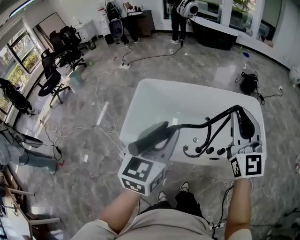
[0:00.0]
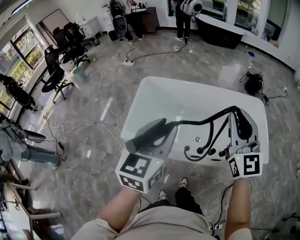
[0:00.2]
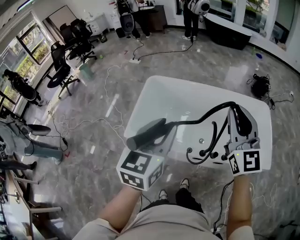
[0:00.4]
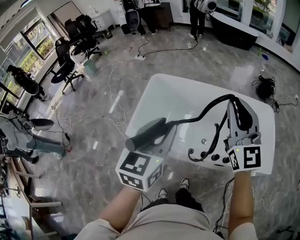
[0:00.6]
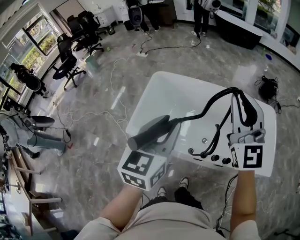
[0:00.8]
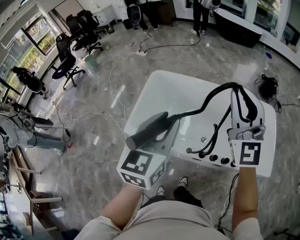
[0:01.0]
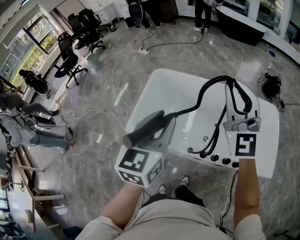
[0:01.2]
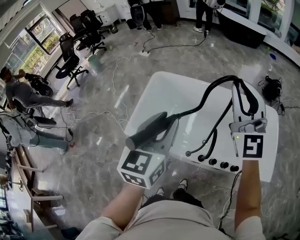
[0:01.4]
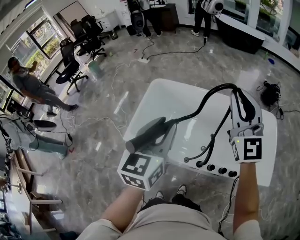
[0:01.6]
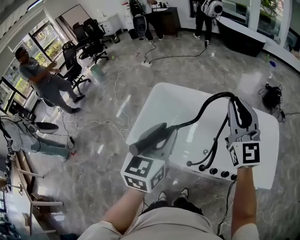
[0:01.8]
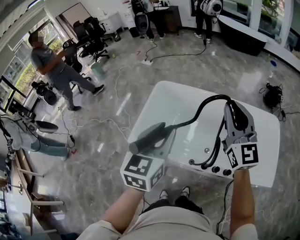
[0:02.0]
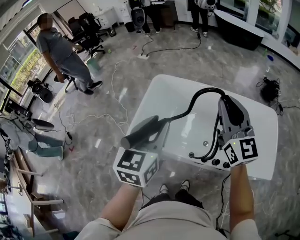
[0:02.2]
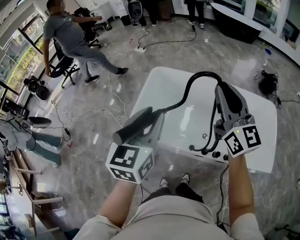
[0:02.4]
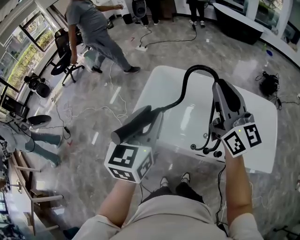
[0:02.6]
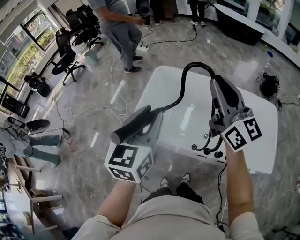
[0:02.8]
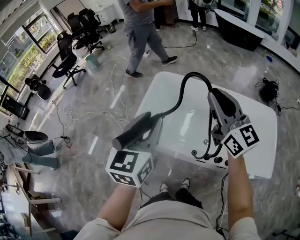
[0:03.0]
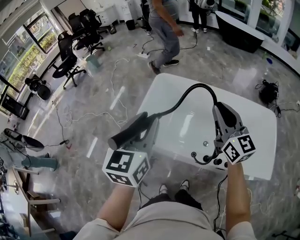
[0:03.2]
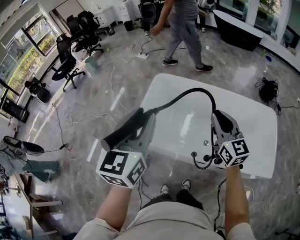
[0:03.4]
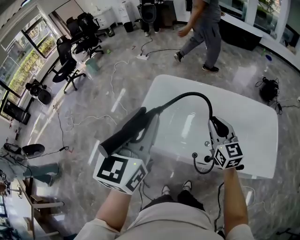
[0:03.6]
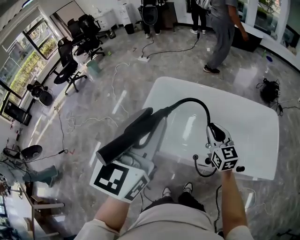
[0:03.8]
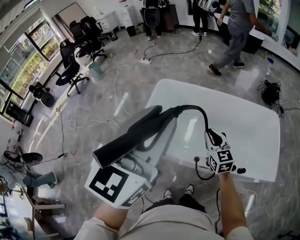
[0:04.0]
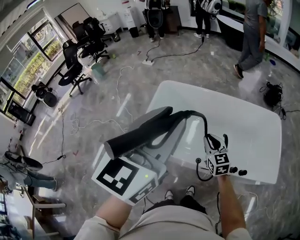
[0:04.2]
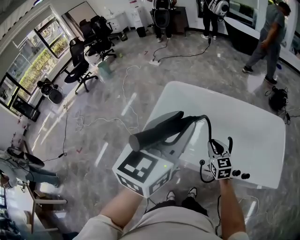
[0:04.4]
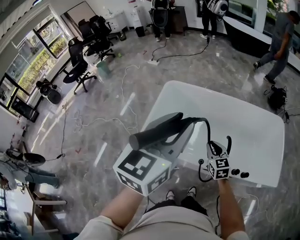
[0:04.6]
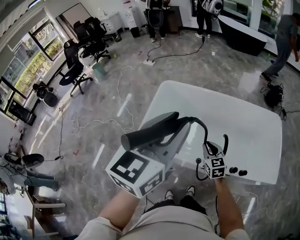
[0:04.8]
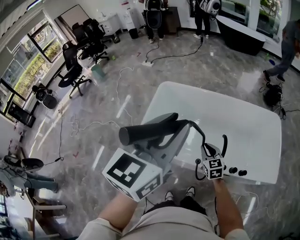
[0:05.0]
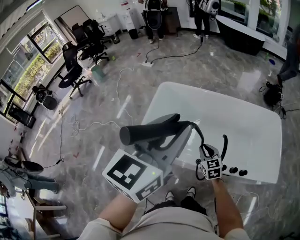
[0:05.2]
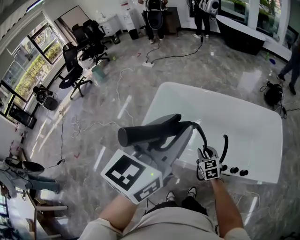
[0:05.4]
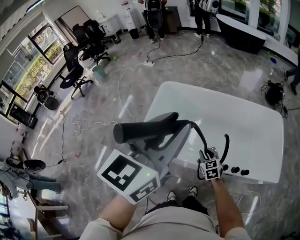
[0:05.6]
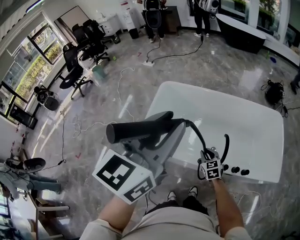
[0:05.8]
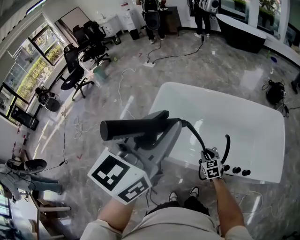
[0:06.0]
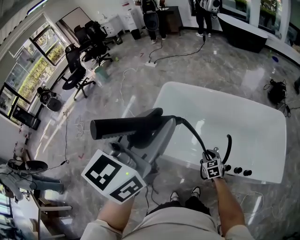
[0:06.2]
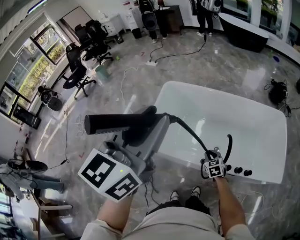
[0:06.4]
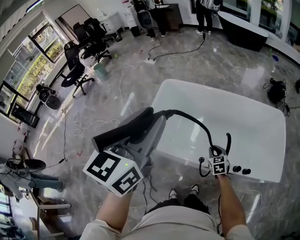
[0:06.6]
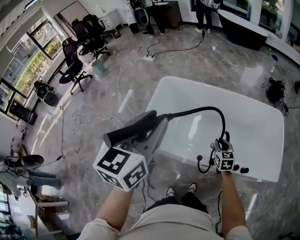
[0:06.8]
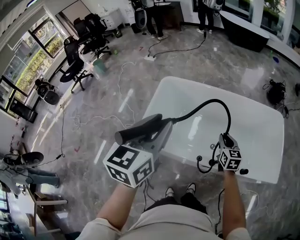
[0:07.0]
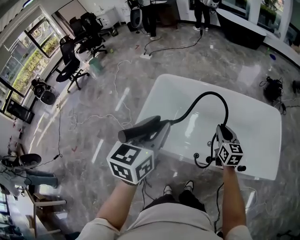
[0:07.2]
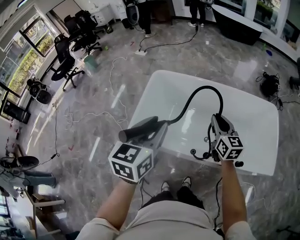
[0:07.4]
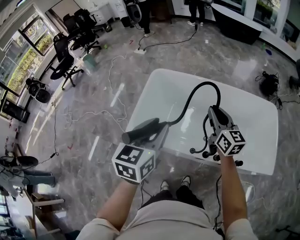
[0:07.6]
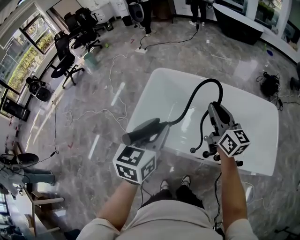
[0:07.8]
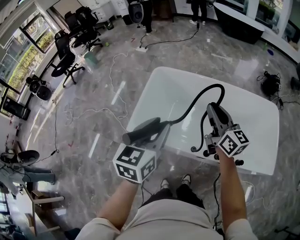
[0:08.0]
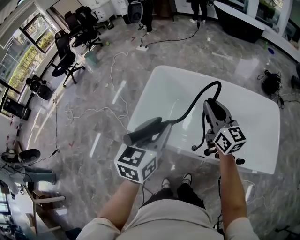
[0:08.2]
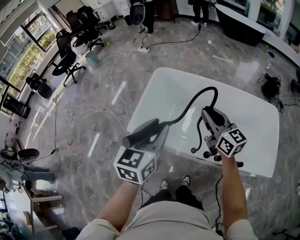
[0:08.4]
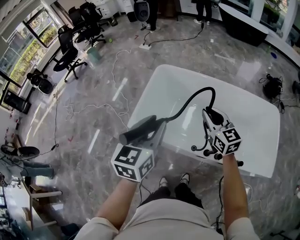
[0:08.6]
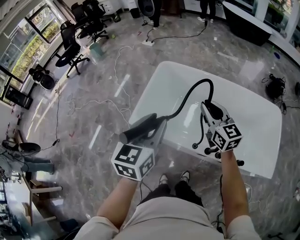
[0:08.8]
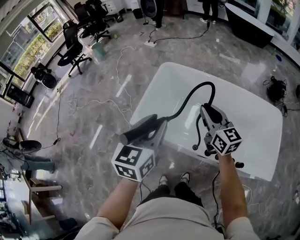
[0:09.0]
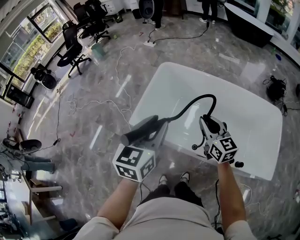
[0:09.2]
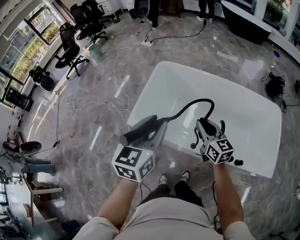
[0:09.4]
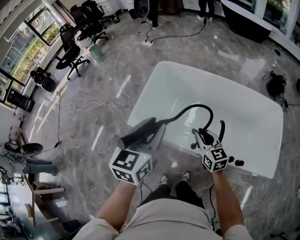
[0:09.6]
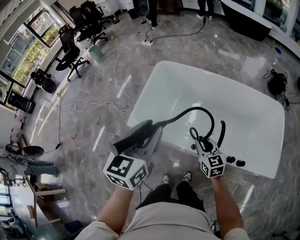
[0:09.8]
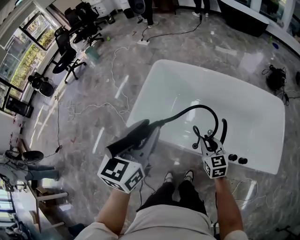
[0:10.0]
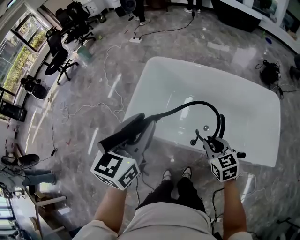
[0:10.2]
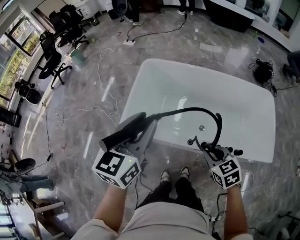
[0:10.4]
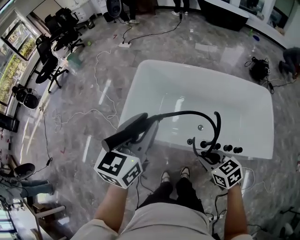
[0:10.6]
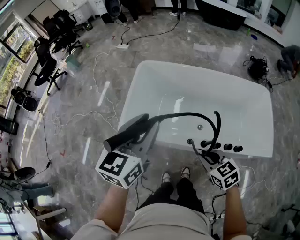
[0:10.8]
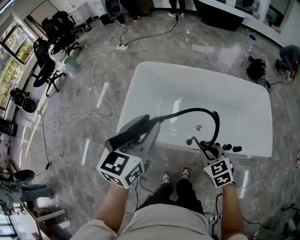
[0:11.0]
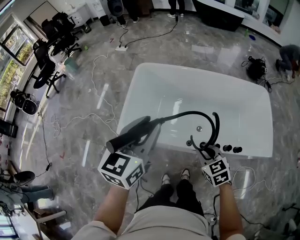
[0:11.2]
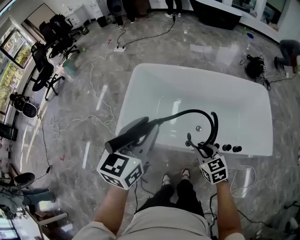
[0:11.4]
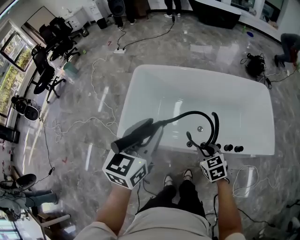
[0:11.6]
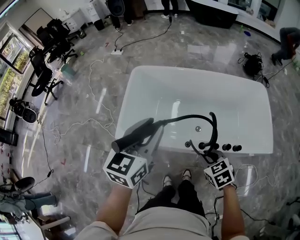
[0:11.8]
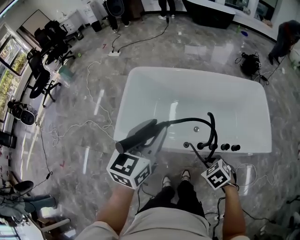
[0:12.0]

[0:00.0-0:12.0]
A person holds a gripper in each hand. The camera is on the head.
0:00.0 to 0:01.6: The left gripper goes approximately 10 cm forward. Meanwhile the right gripper heads forward, covering about 20 cm.
0:01.6 to 0:03.0: Both grippers move to the left, approximately 15 cm. The right gripper swivels approximately 30 degrees.
0:03.0 to 0:04.4: The left gripper goes approximately 10 cm upward and to the right. The right gripper travels downward by approximately 30 cm, and tilts its fingers roughly 30 degrees downward.
0:04.4 to 0:06.0: The right gripper goes some 15 cm downward.
0:06.0 to 0:07.6: The left gripper heads downward, covering approximately 15 cm. The right gripper goes about 25 cm upward, and angles its fingers upward, by approximately 30 degrees.
0:07.6 to 0:09.0: The right gripper moves to the left, approximately 5 cm.
0:09.0 to 0:10.4: The right gripper goes roughly 20 cm backward and downward, and tips its fingers downward by approximately 40 degrees.
0:10.4 to 0:12.0: The left gripper travels to the right by some 5 cm, while the right gripper heads downward, covering roughly 5 cm, and turns by about 20 degrees.

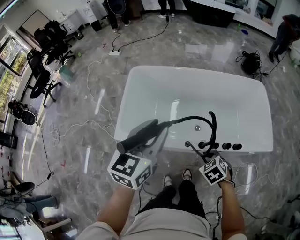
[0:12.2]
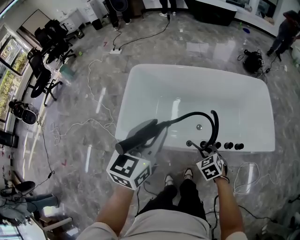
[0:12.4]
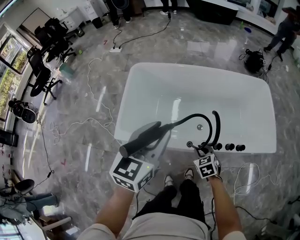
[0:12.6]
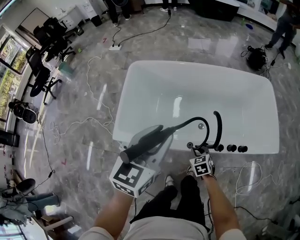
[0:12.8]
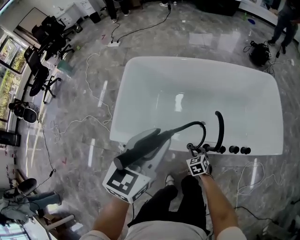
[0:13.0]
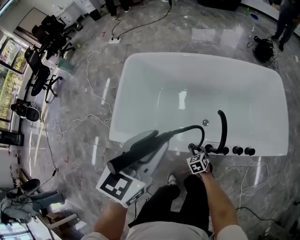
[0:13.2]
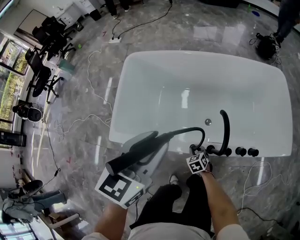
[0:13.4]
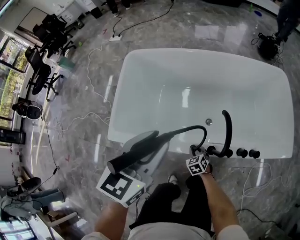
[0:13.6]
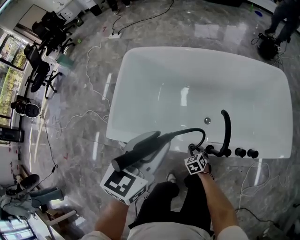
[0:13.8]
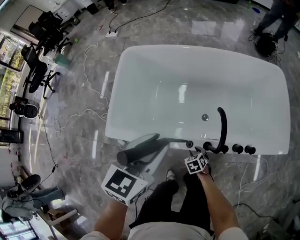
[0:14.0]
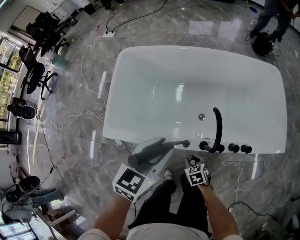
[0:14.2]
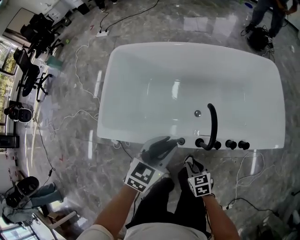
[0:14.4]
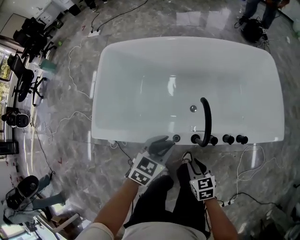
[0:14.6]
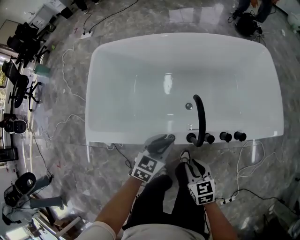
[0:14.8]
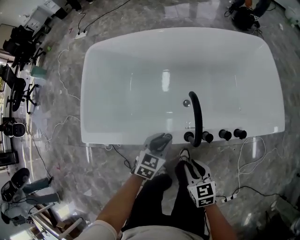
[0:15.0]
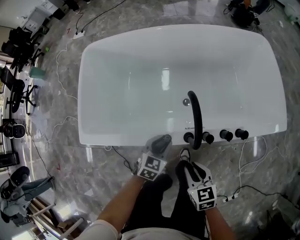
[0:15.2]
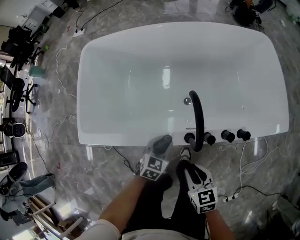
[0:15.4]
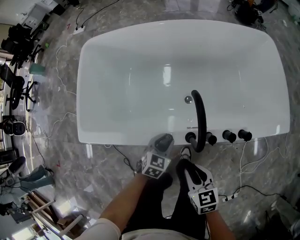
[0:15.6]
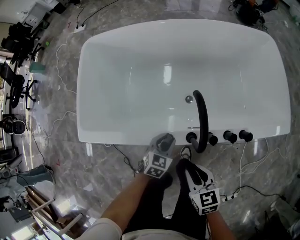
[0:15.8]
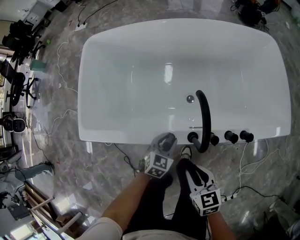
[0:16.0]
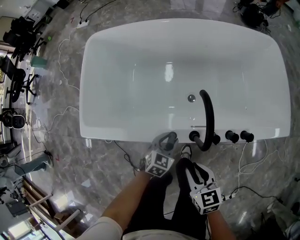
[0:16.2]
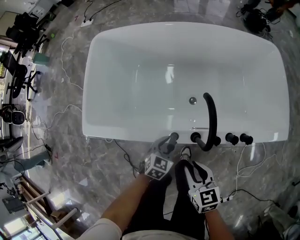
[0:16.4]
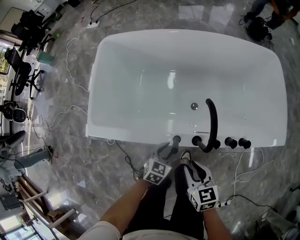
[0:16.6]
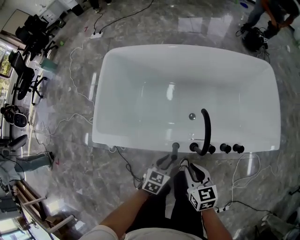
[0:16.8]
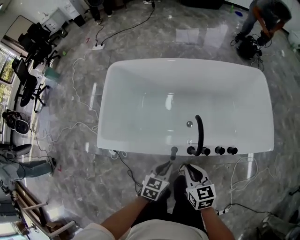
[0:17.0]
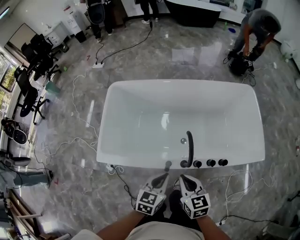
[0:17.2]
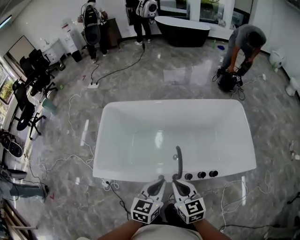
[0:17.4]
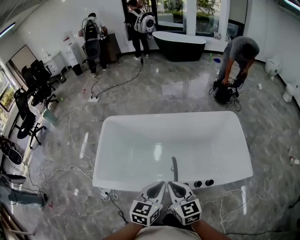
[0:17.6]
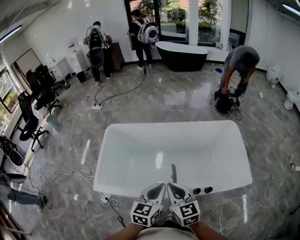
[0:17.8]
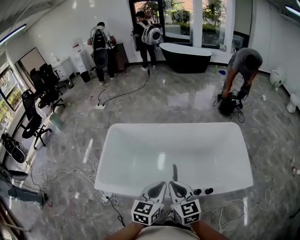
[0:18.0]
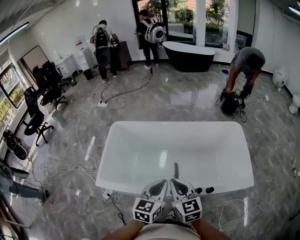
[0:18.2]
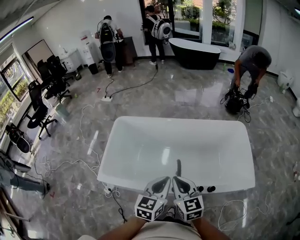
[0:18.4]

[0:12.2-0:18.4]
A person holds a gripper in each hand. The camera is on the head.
0:12.2 to 0:13.8: The left gripper heads downward, covering some 15 cm. Meanwhile the right gripper travels downward by approximately 30 cm.
0:13.8 to 0:15.4: The left gripper travels downward by approximately 35 cm, and swivels roughly 30 degrees. The right gripper is displaced upward, backward and to the right by roughly 20 cm, and changes its angle by some 30 degrees.
0:15.4 to 0:16.8: The grippers both shift upward by about 5 cm.
0:16.8 to 0:18.4: Both grippers travel together upward, some 30 cm. The left gripper changes its angle by about 30 degrees, and closes its fingers. Meanwhile the right gripper turns by approximately 30 degrees.

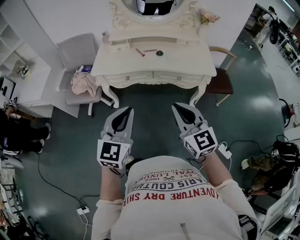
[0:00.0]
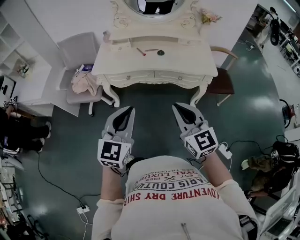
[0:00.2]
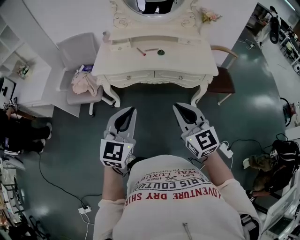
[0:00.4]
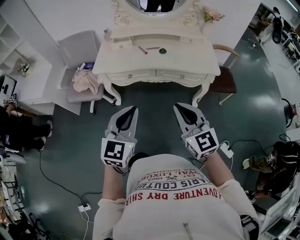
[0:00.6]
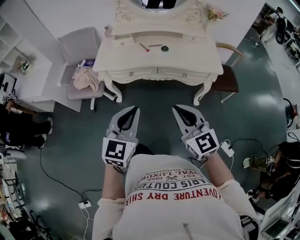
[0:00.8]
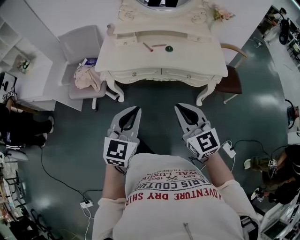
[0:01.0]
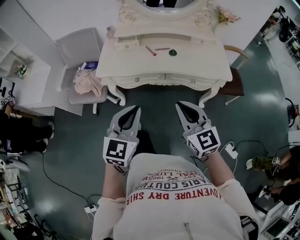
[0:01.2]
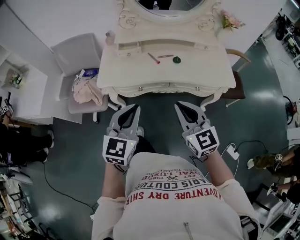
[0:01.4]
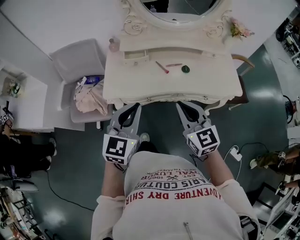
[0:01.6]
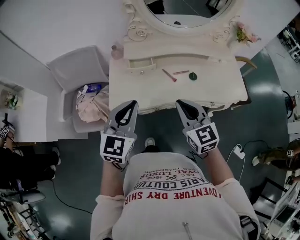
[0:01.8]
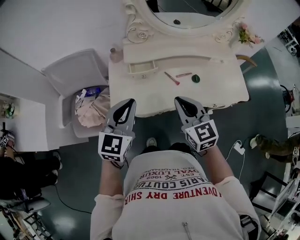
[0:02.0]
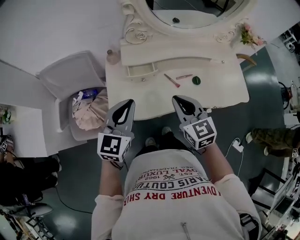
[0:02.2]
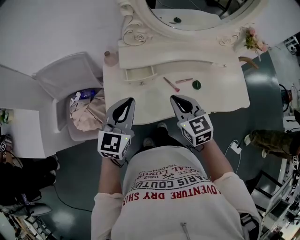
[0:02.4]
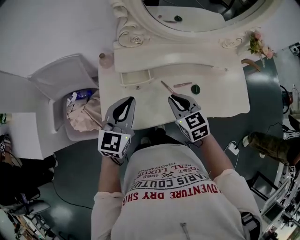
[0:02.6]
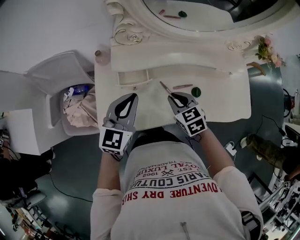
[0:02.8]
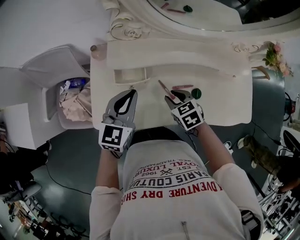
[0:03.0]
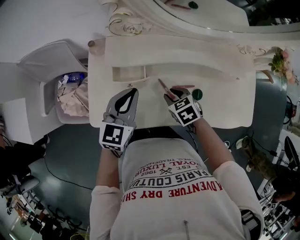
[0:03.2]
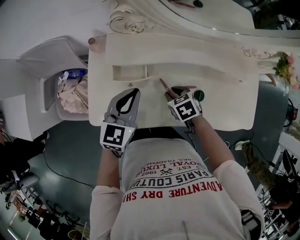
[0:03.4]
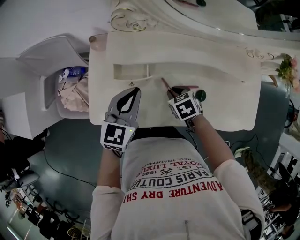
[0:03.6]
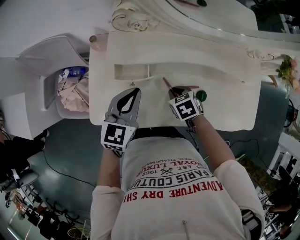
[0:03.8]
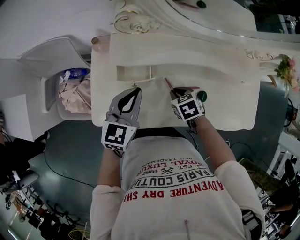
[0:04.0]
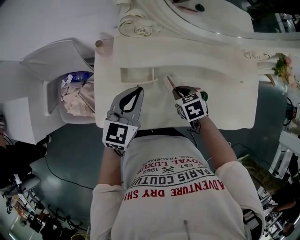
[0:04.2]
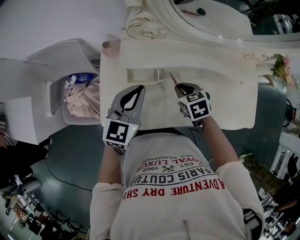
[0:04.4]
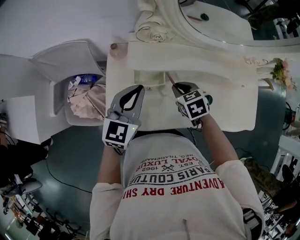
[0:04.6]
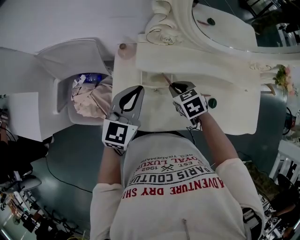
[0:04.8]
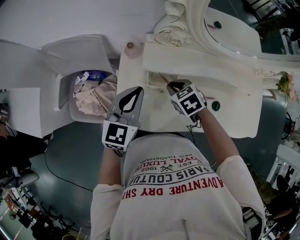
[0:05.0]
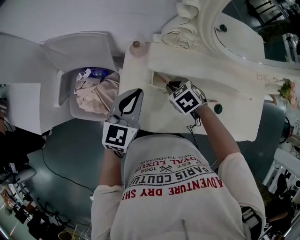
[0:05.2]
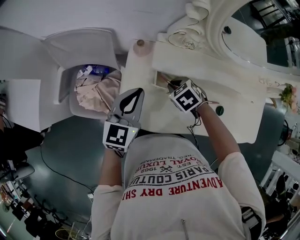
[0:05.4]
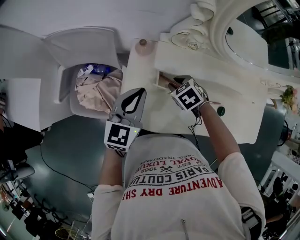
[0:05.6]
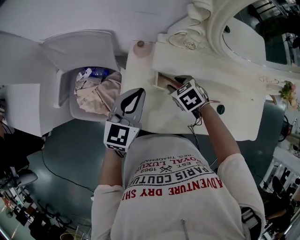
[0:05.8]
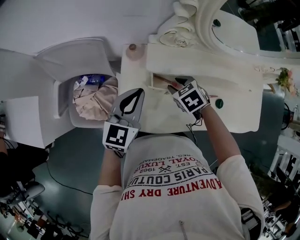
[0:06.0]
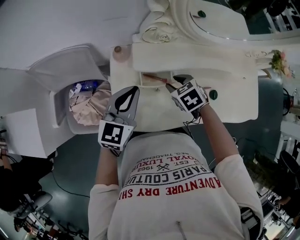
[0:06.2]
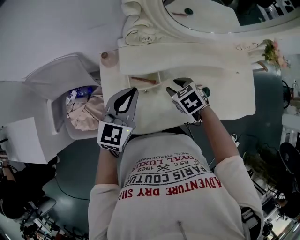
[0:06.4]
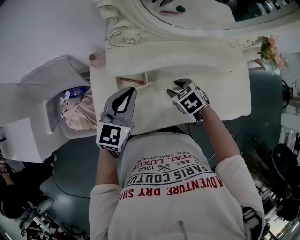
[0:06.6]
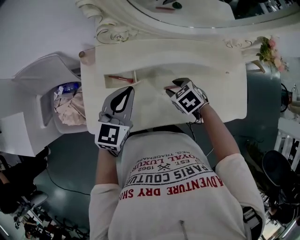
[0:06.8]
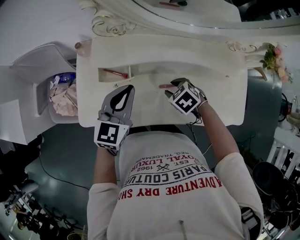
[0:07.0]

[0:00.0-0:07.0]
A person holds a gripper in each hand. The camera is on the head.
0:00.0 to 0:01.4: The two grippers go some 20 cm forward and to the left.
0:01.4 to 0:02.8: The left gripper goes approximately 40 cm forward, while the right gripper travels forward and downward by about 40 cm, and tips its fingers downward by about 30 degrees.
0:02.8 to 0:04.2: The left gripper changes place by some 5 cm. Meanwhile the right gripper travels downward by approximately 10 cm.
0:04.2 to 0:05.6: The right gripper is displaced to the left and forward by some 20 cm, and swivels roughly 20 degrees, while the left gripper shifts roughly 15 cm to the left.
0:05.6 to 0:07.0: The left gripper is displaced to the right by some 20 cm. The right gripper goes some 25 cm to the right and backward.
